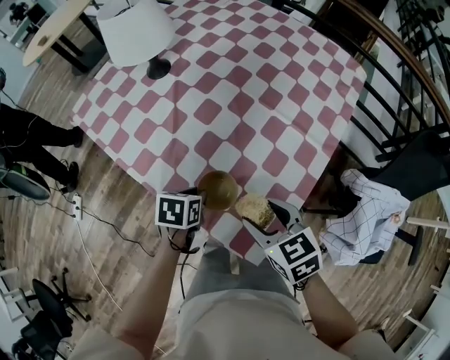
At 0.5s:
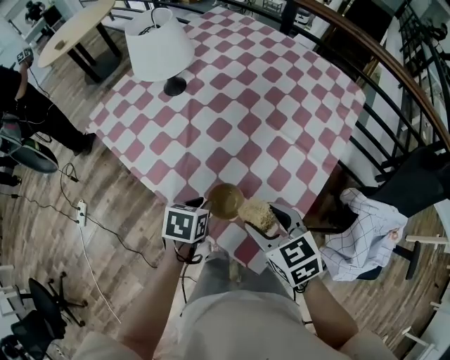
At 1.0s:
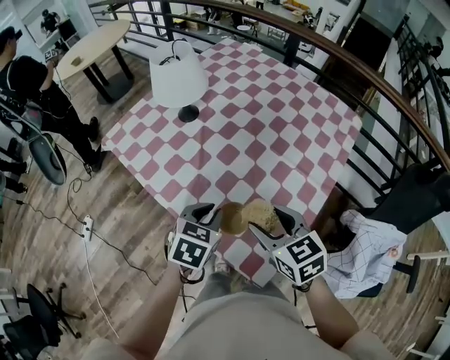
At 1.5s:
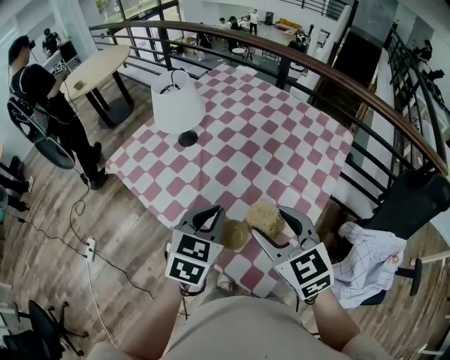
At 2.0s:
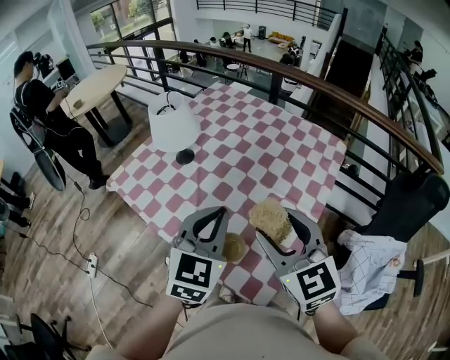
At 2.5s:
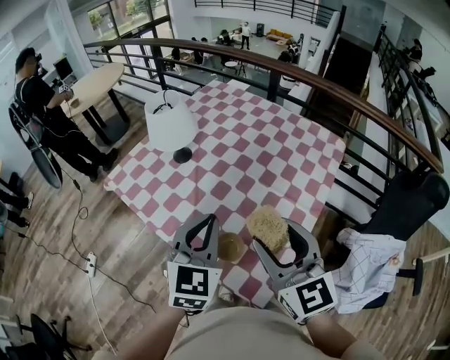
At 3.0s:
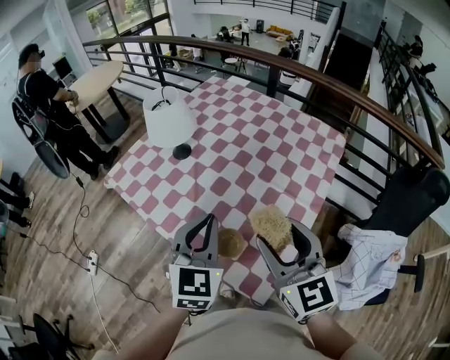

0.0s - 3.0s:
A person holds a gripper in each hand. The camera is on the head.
0.0s - 1.5s: Both grippers travel together upward, about 25 cm. The right gripper turns by some 30 degrees. The left gripper rotates about 40 degrees.
1.5s - 3.0s: The two grippers go some 5 cm upward. The right gripper changes its angle by about 20 degrees, while the left gripper turns by roughly 20 degrees.

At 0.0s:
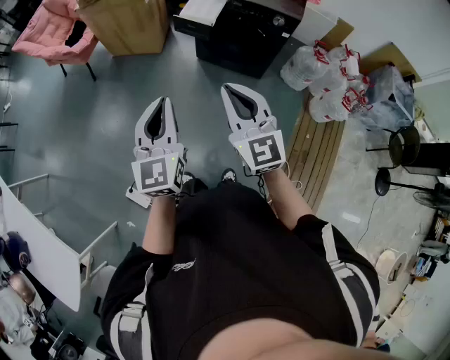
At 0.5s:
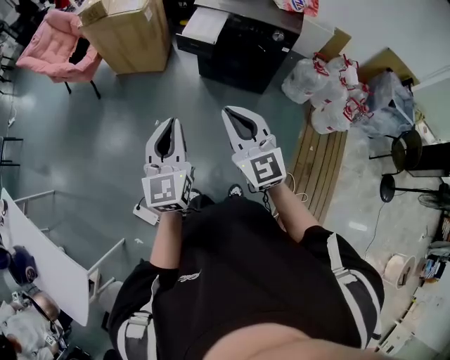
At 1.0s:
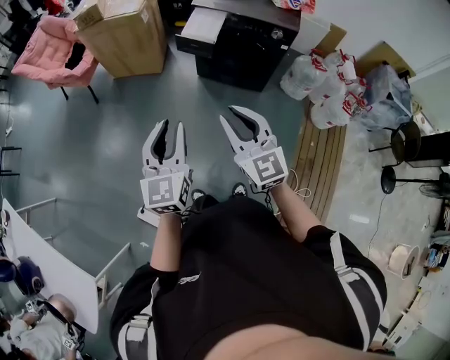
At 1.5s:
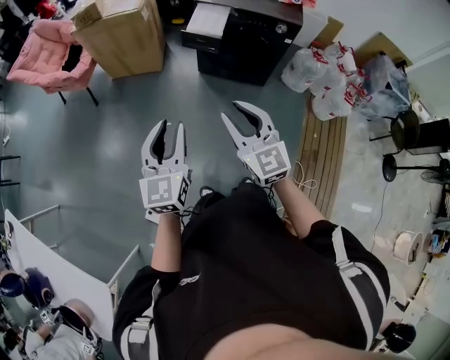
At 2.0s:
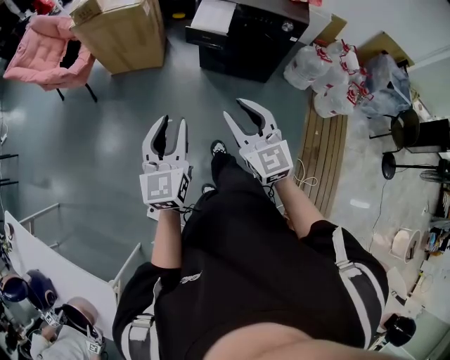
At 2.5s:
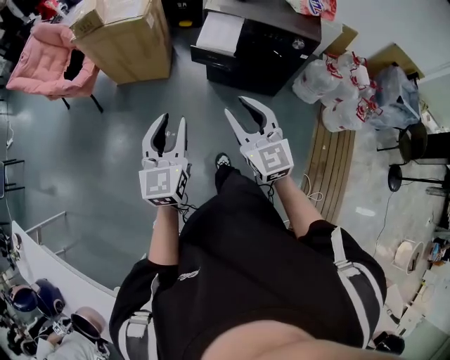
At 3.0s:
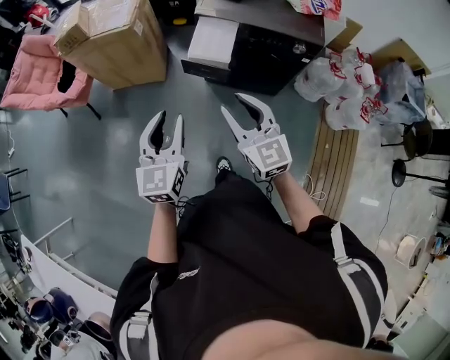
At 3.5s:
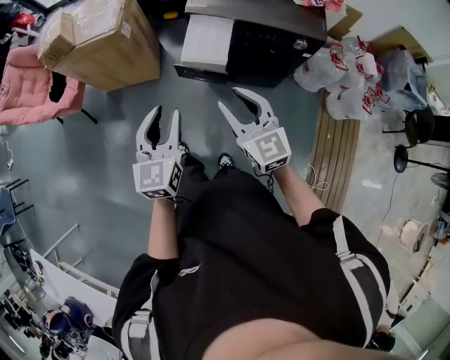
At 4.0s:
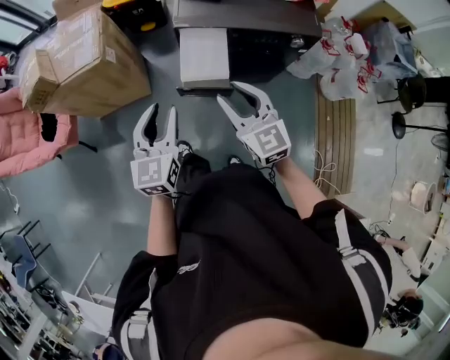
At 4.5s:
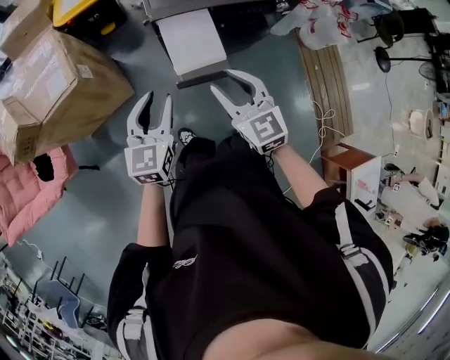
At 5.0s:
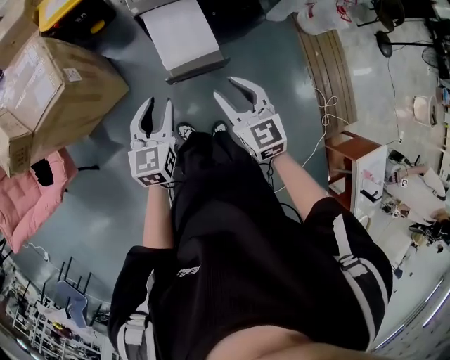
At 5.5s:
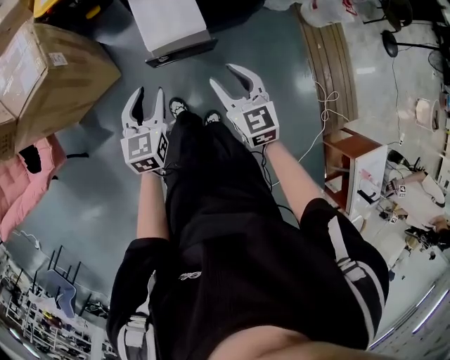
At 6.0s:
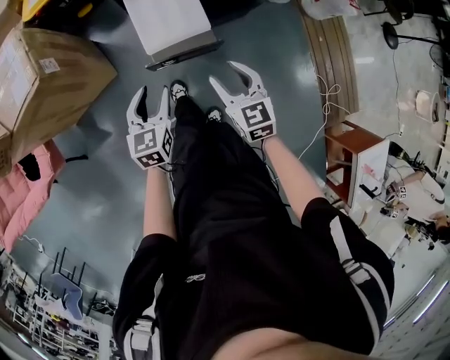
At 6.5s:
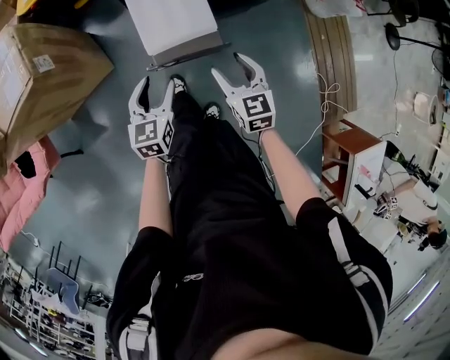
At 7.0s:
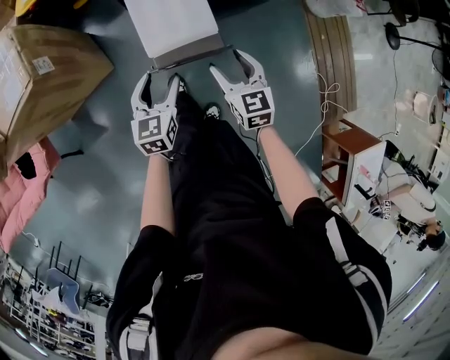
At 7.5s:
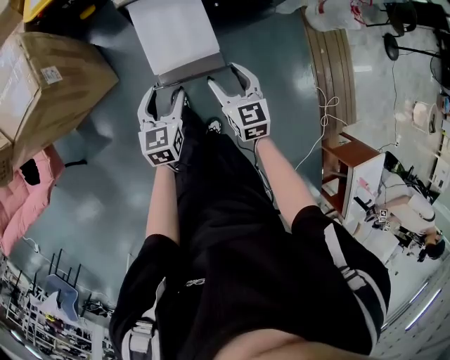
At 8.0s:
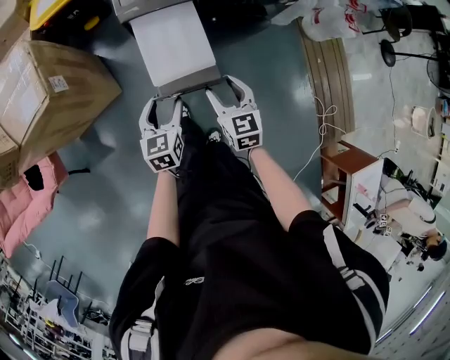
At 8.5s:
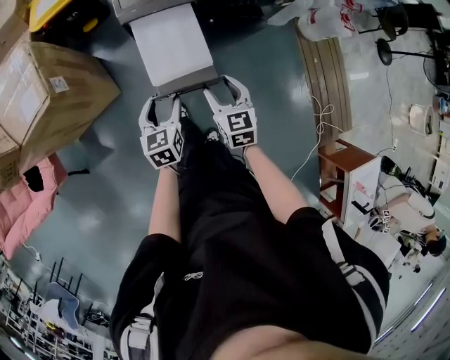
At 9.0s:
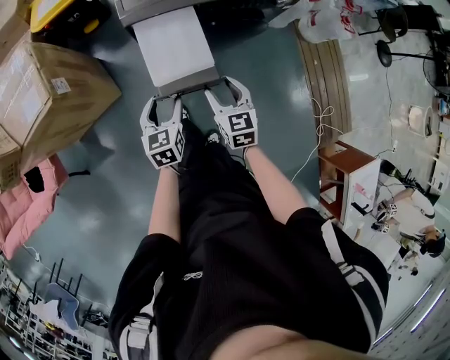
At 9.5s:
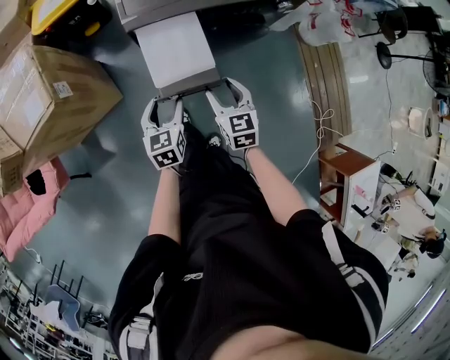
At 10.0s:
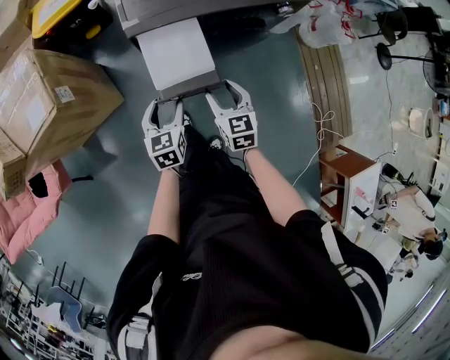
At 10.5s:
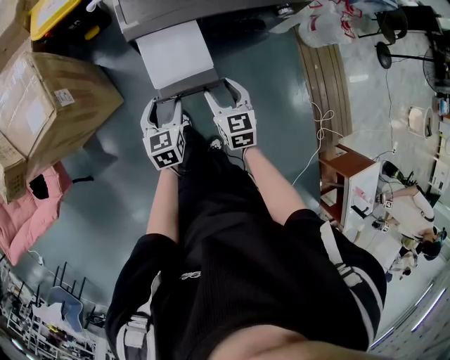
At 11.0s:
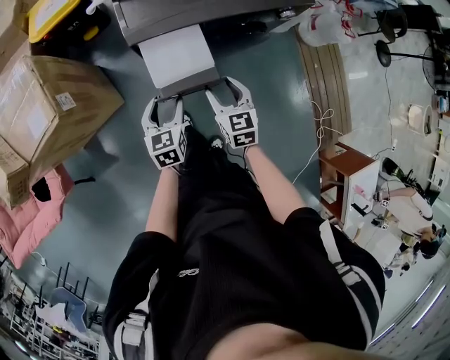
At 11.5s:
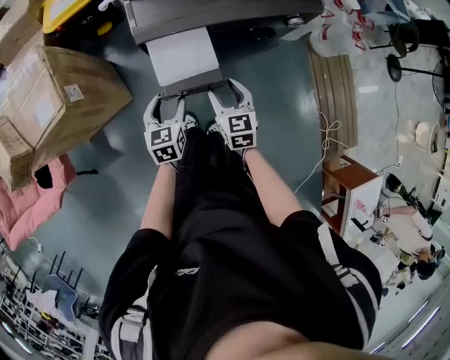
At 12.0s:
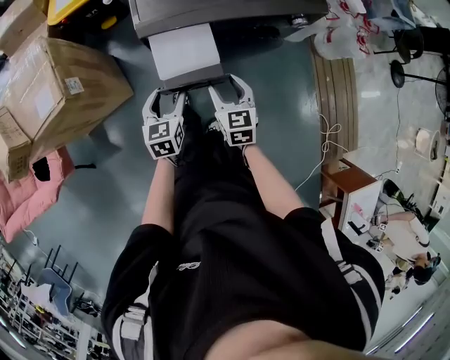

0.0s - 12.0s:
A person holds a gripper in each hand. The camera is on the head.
0.0s - 2.0s: The two grippers go about 10 cm to the left and downward. The right gripper opens its fingers, while the left gripper opens up.
2.0s - 4.0s: The two grippers travel together, forward, about 40 cm.
4.0s - 6.0s: Both grippers travel together downward, some 25 cm. The right gripper changes its angle by some 30 degrees. The left gripper swivels roughly 20 degrees.
6.0s - 8.0s: The grippers both shift forward by about 5 cm.
8.0s - 10.0s: The grippers make only small movements.
10.0s - 12.0s: There are only small adjustments of the grippers.

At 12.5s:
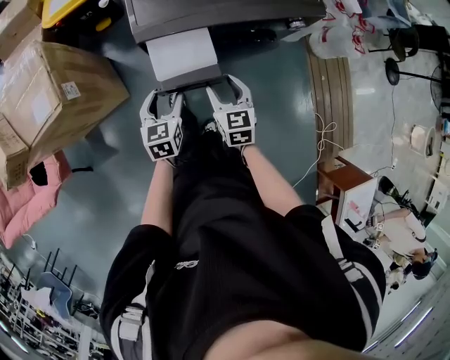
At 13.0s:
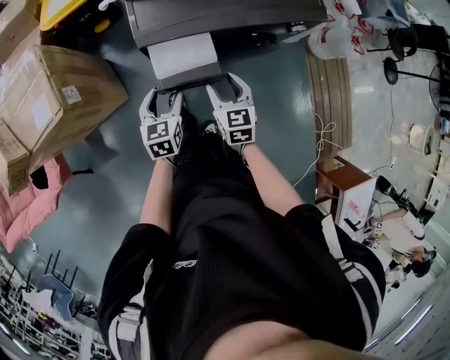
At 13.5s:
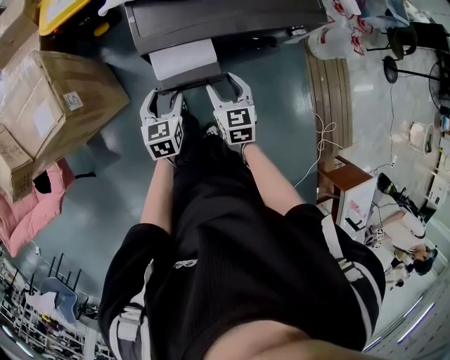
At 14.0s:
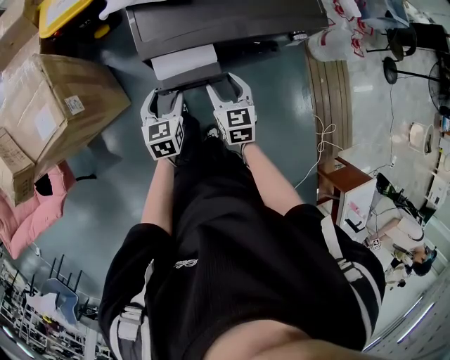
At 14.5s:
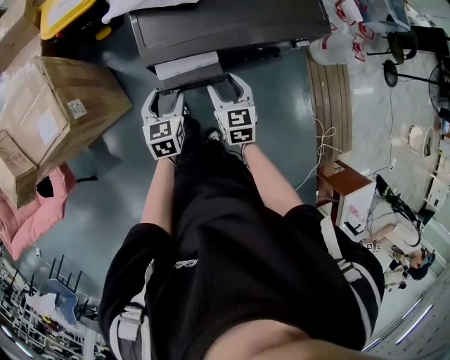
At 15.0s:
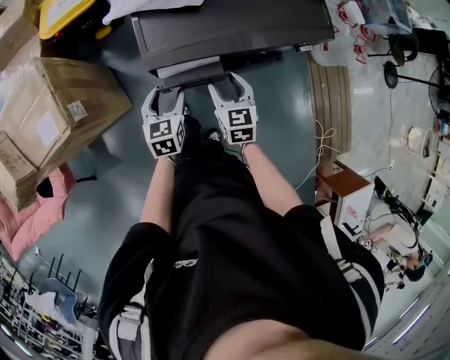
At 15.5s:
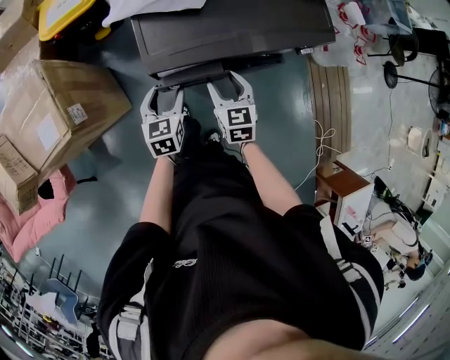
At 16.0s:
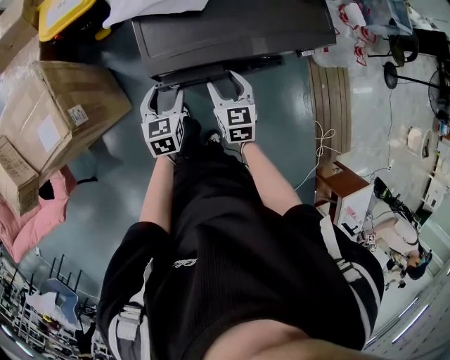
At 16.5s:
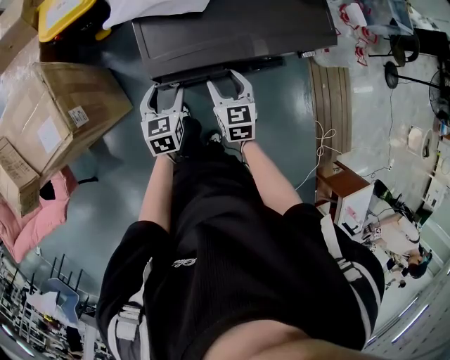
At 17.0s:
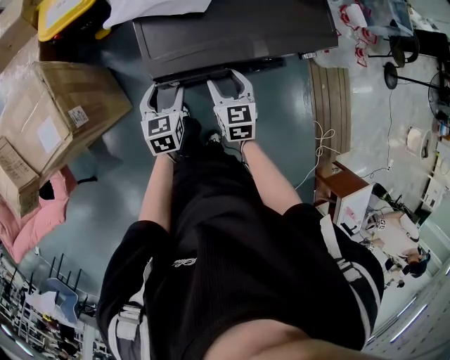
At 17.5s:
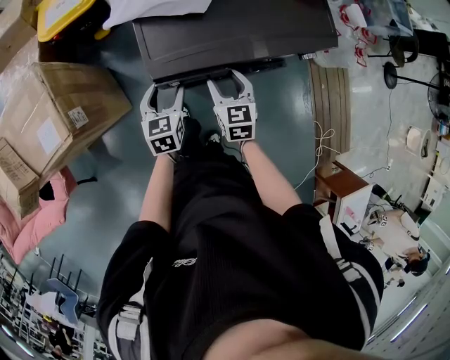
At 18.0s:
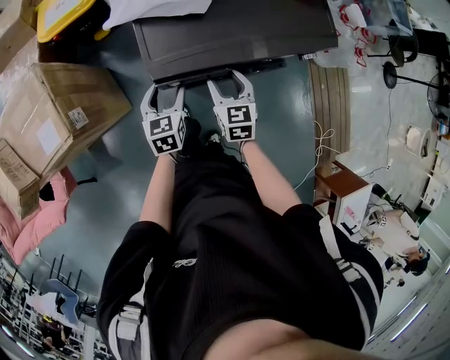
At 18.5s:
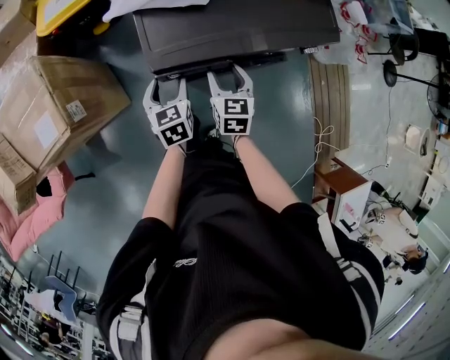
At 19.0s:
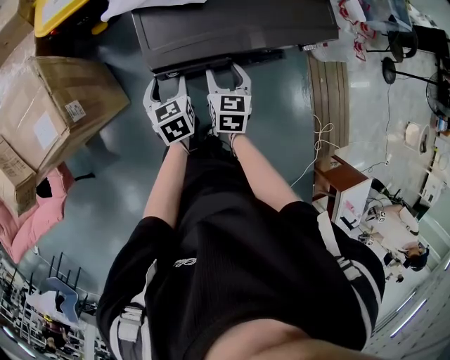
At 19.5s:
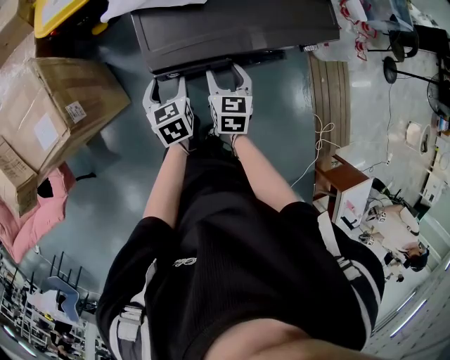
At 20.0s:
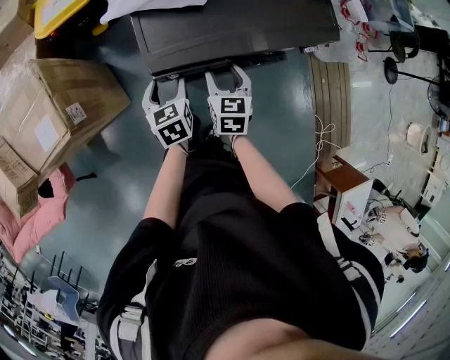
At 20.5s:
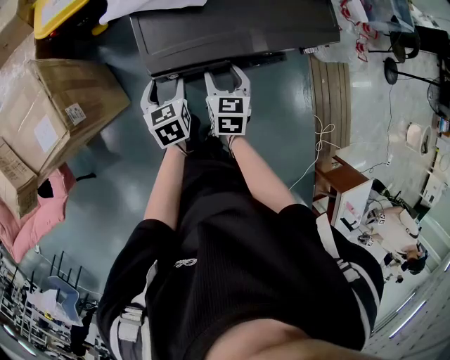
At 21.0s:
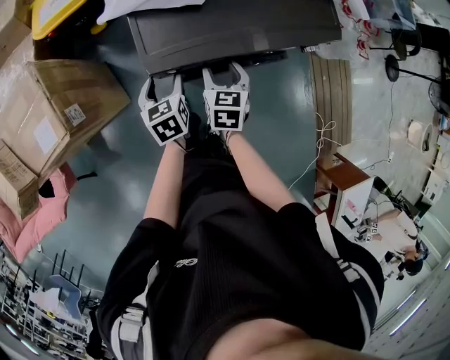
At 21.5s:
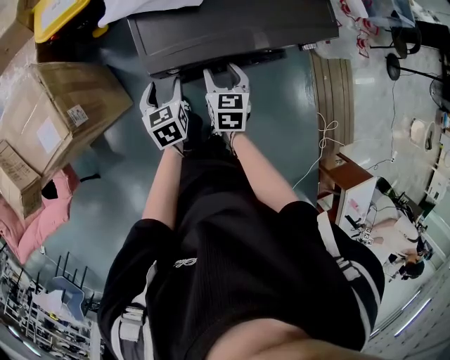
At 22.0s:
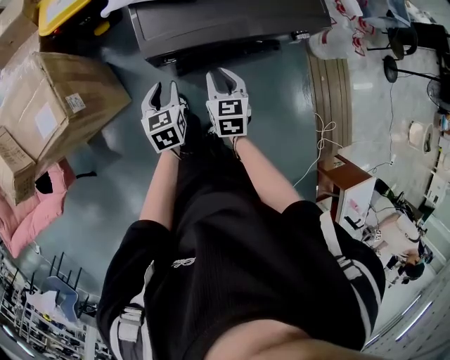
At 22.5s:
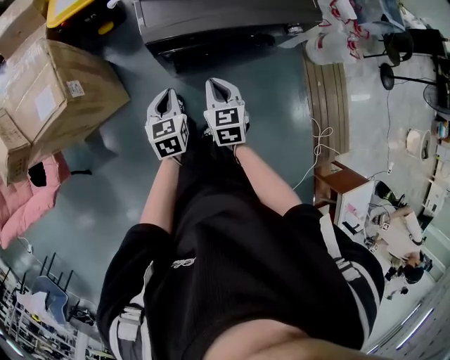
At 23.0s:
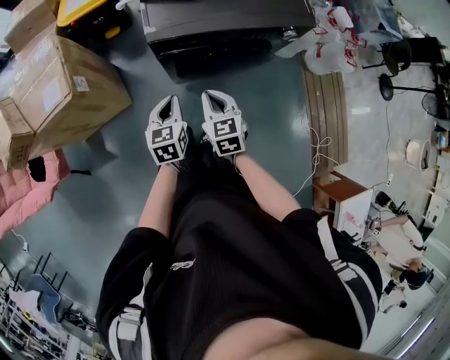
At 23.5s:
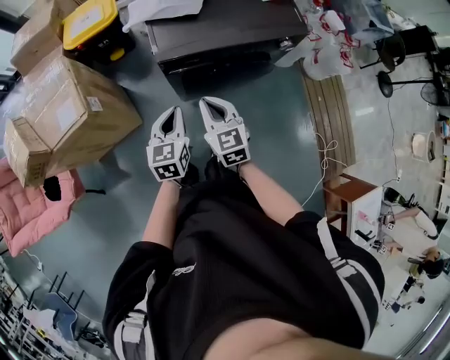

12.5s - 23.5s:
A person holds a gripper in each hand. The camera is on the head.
12.5s - 14.5s: The grippers both shift forward by approximately 10 cm.
14.5s - 20.0s: The grippers make only small movements.
20.0s - 21.5s: Both grippers stay put.
21.5s - 23.5s: The grippers both shift backward and upward by approximately 20 cm. The left gripper swivels approximately 20 degrees, and closes its fingers. The right gripper swivels roughly 20 degrees, and closes up.

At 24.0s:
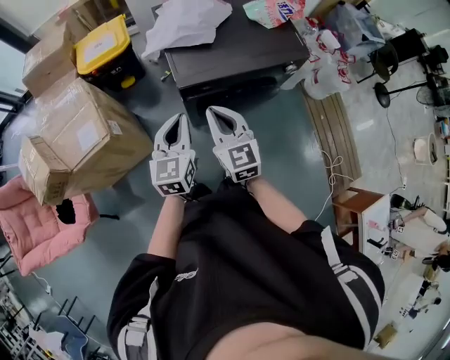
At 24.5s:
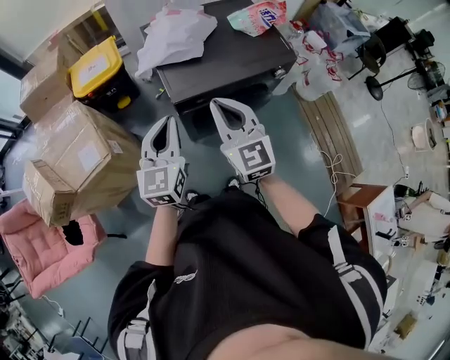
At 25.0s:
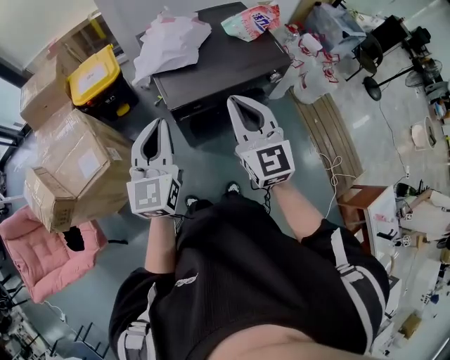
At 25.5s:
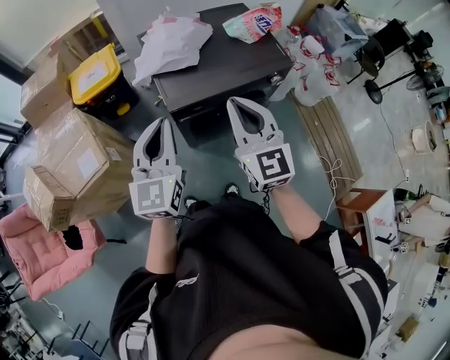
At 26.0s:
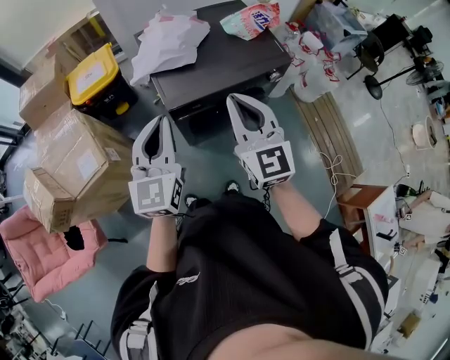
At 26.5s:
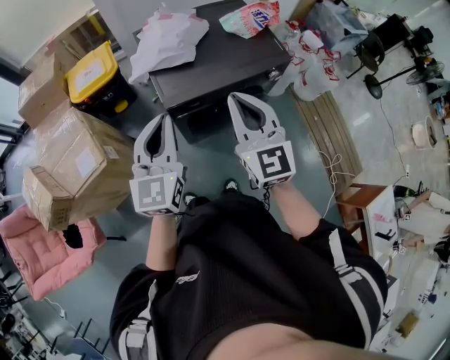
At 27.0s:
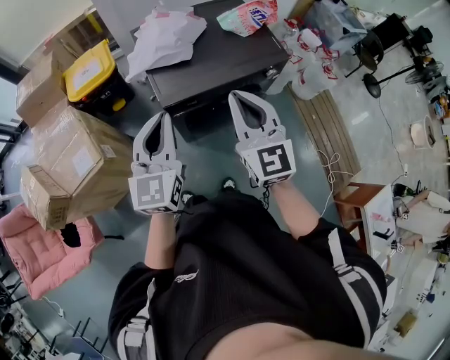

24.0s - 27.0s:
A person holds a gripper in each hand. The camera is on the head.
24.0s - 25.5s: The right gripper is displaced upward and to the right by some 15 cm. Meanwhile the left gripper moves upward, about 15 cm.
25.5s - 27.0s: The grippers make only small movements.
